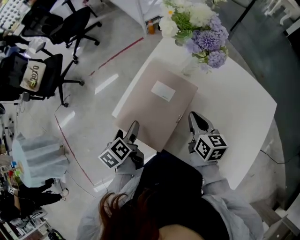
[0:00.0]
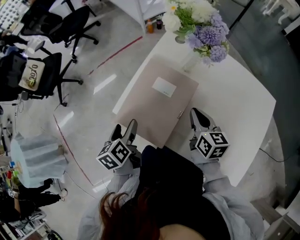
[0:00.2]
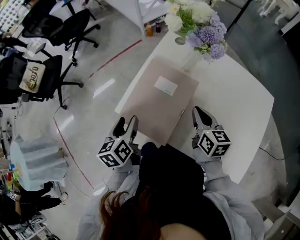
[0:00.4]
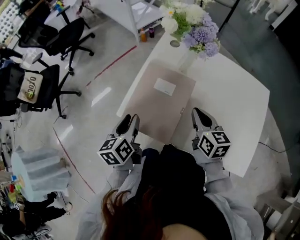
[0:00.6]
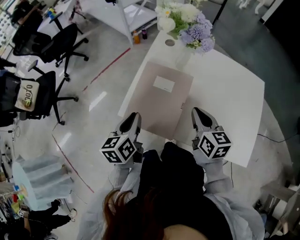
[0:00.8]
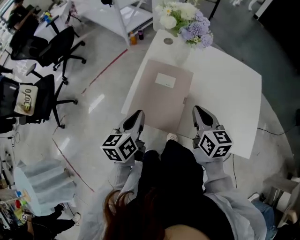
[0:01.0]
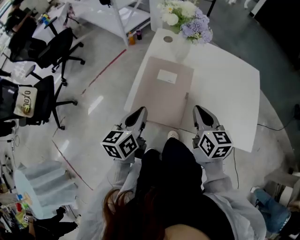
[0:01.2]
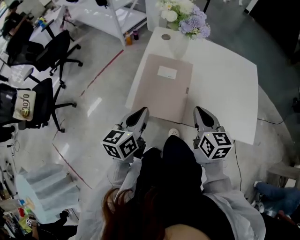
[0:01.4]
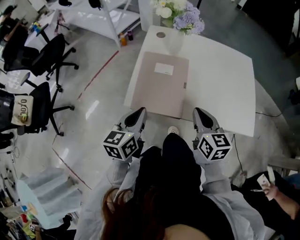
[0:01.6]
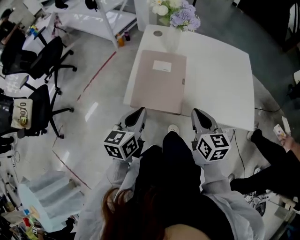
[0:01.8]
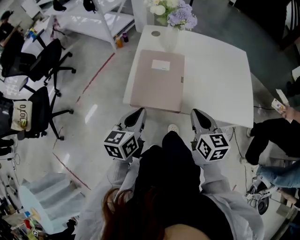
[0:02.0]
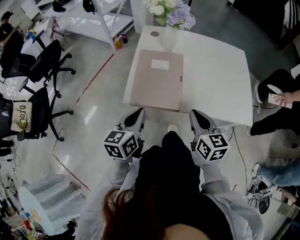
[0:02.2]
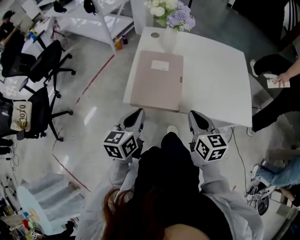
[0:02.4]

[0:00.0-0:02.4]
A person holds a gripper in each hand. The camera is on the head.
0:00.0 to 0:01.2: The right gripper ends up roughly 15 cm from where it was. Meanwhile the left gripper moves upward, some 15 cm, changes its angle by approximately 50 degrees, and closes its fingers.
0:01.2 to 0:02.4: The left gripper is displaced backward by some 5 cm; the right gripper moves backward, some 10 cm.

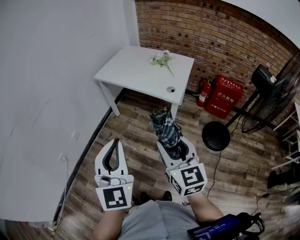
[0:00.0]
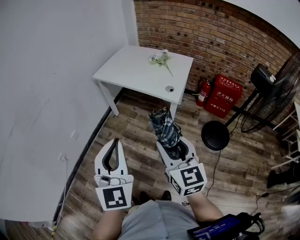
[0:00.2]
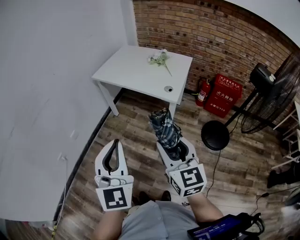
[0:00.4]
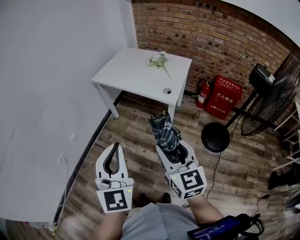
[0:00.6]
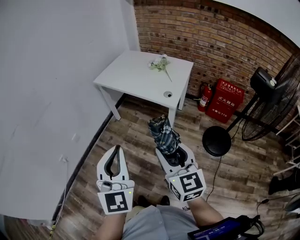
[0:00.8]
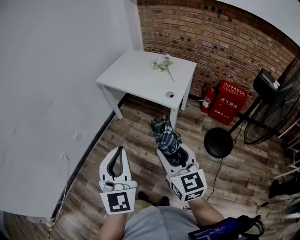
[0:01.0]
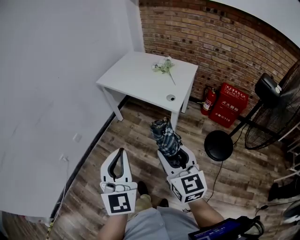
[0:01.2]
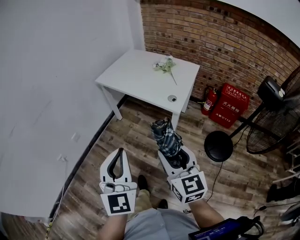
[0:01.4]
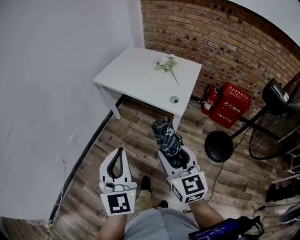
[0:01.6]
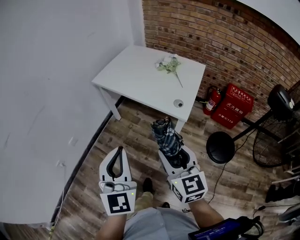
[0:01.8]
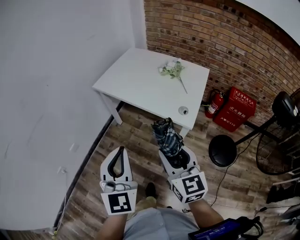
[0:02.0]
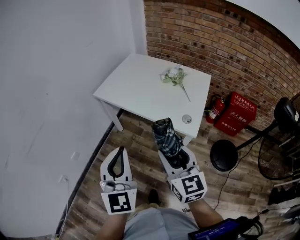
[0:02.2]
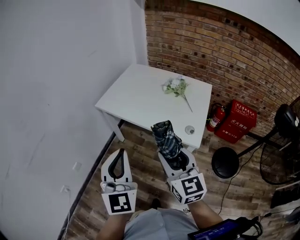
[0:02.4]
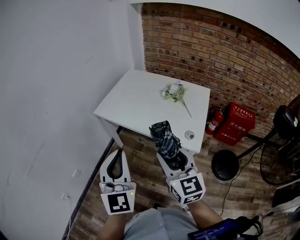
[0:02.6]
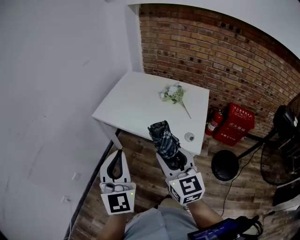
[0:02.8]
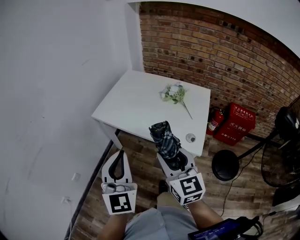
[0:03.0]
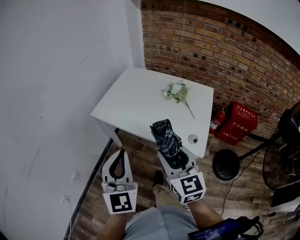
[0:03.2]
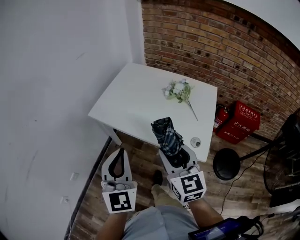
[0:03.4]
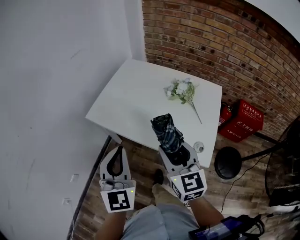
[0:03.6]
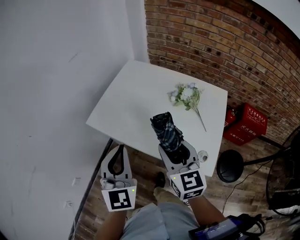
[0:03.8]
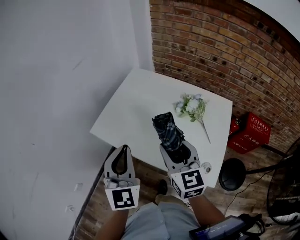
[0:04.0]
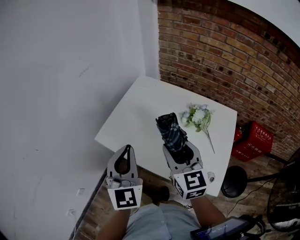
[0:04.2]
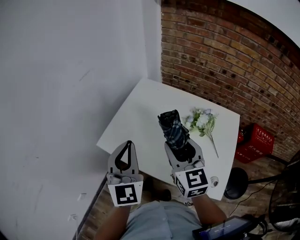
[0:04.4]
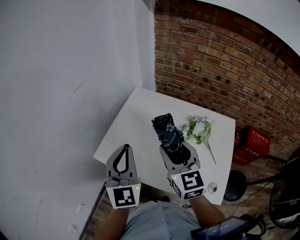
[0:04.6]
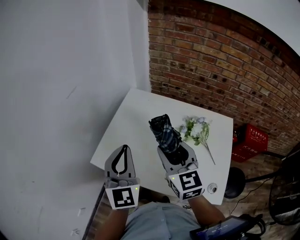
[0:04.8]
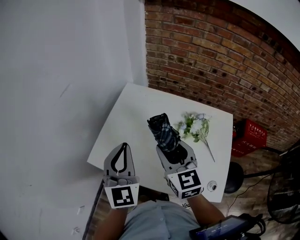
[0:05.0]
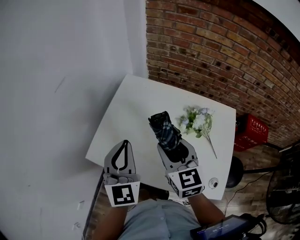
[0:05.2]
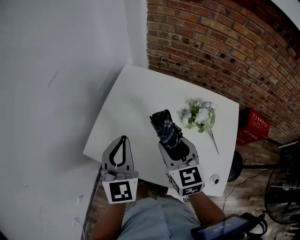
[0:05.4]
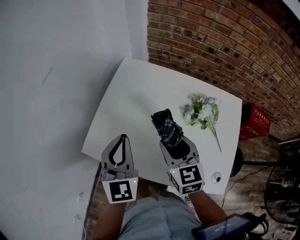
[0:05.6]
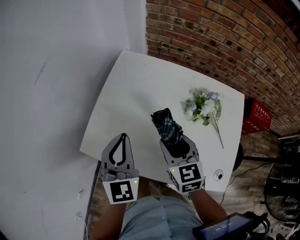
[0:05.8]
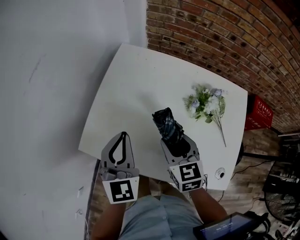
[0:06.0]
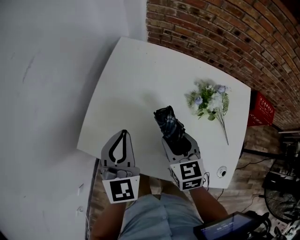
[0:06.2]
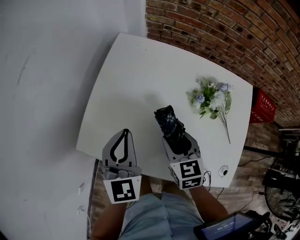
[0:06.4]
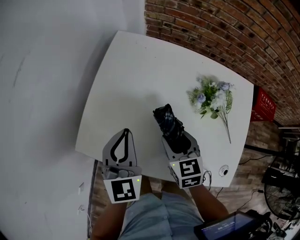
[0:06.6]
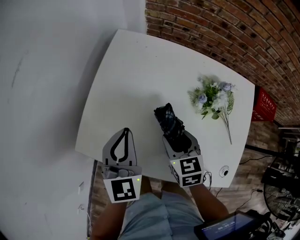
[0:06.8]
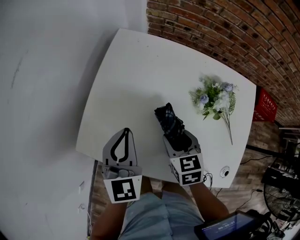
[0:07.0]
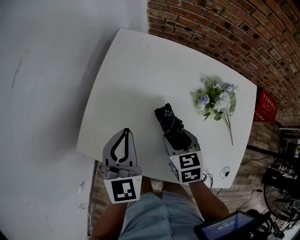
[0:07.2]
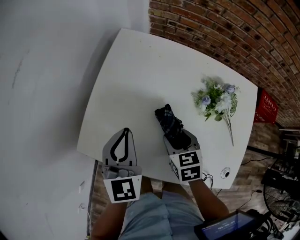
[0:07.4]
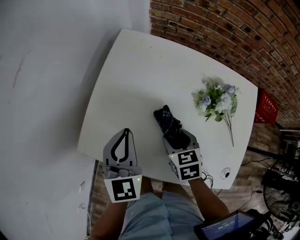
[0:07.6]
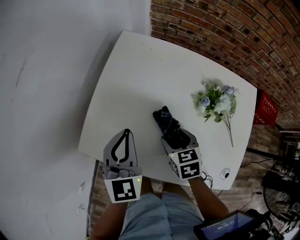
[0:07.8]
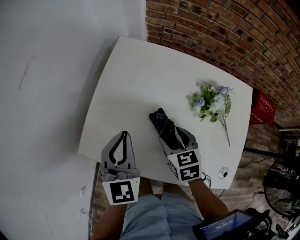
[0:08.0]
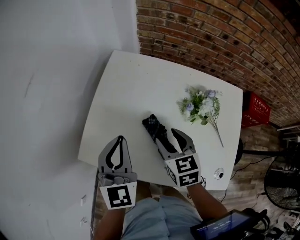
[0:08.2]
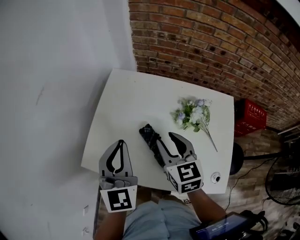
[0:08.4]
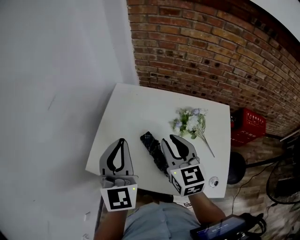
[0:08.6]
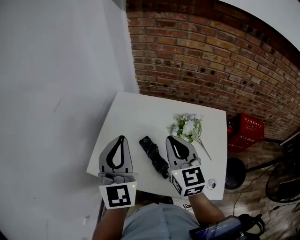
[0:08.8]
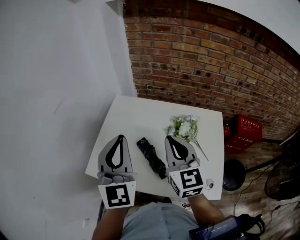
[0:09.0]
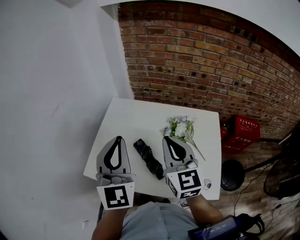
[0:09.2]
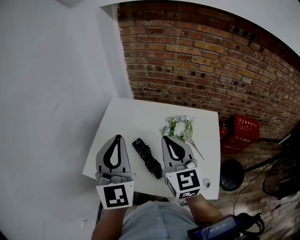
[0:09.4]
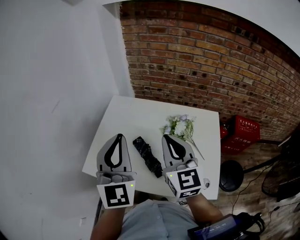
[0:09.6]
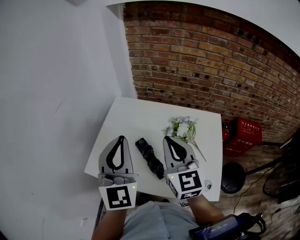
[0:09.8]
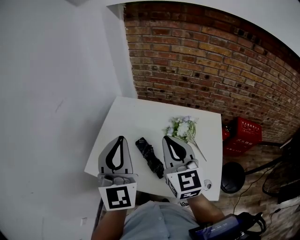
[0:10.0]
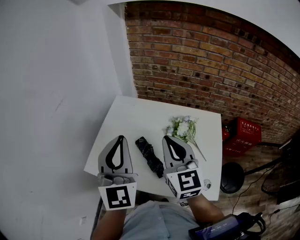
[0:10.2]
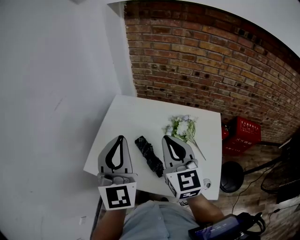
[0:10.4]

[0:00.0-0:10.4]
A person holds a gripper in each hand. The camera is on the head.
0:00.0 to 0:01.4: The right gripper moves about 5 cm. The left gripper is displaced to the right by roughly 5 cm.
0:01.4 to 0:03.0: Both grippers move forward, some 30 cm.
0:03.0 to 0:04.4: Both grippers travel together forward, some 35 cm.
0:04.4 to 0:06.0: The grippers both shift downward and forward by some 20 cm. The right gripper rotates roughly 20 degrees.
0:06.0 to 0:07.4: The left gripper shifts by about 5 cm. Meanwhile the right gripper moves downward, approximately 10 cm.
0:07.4 to 0:09.0: The two grippers go some 25 cm upward. The left gripper rotates roughly 30 degrees, while the right gripper points its fingers some 50 degrees further upward, and closes its fingers.
0:09.0 to 0:10.4: The grippers stay close to where they were, moving slightly.

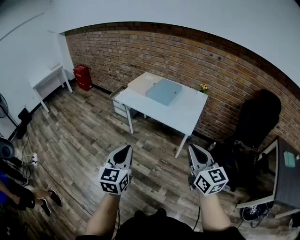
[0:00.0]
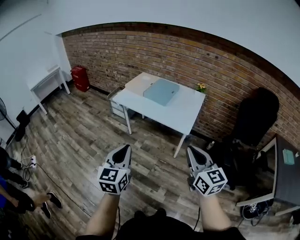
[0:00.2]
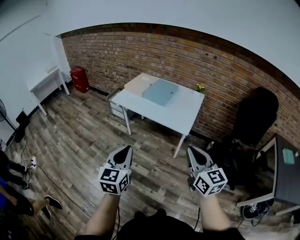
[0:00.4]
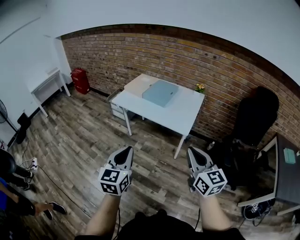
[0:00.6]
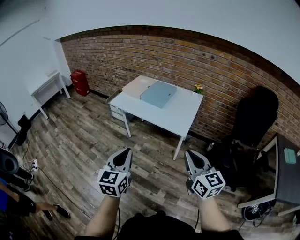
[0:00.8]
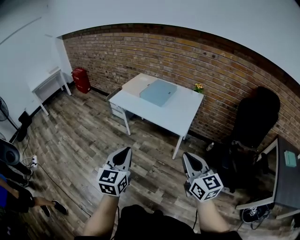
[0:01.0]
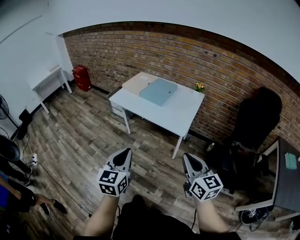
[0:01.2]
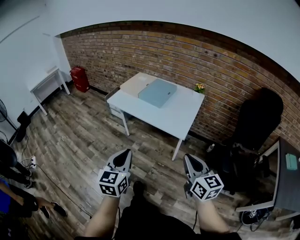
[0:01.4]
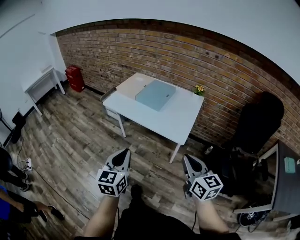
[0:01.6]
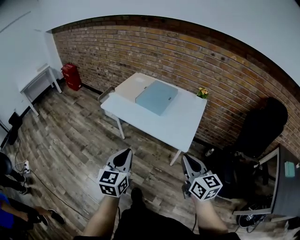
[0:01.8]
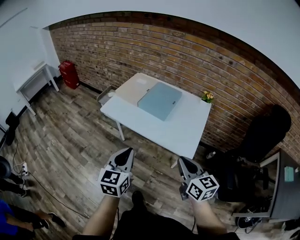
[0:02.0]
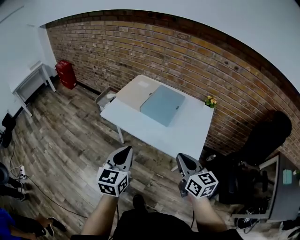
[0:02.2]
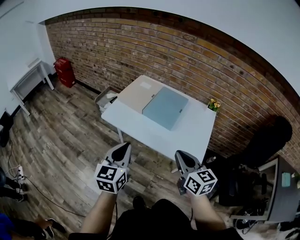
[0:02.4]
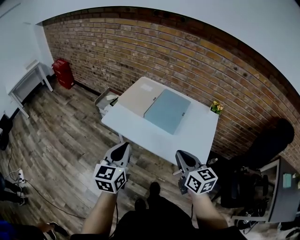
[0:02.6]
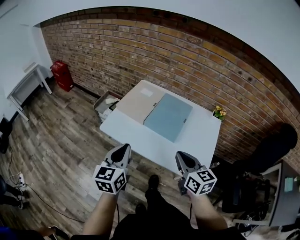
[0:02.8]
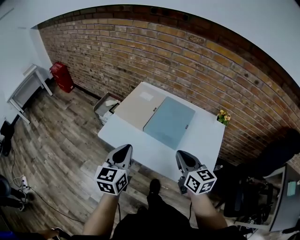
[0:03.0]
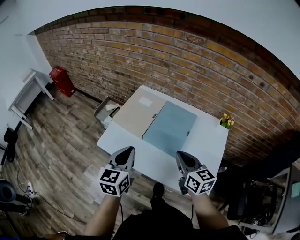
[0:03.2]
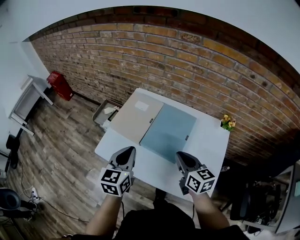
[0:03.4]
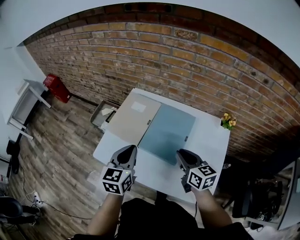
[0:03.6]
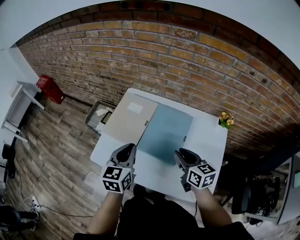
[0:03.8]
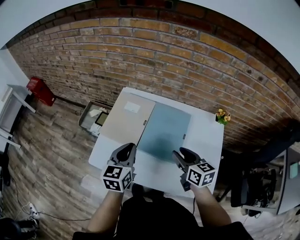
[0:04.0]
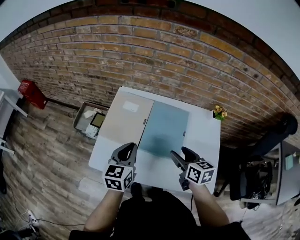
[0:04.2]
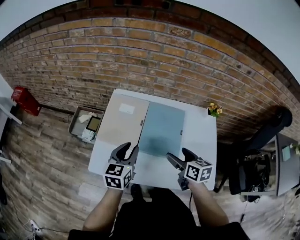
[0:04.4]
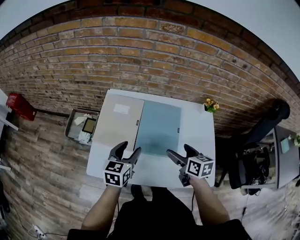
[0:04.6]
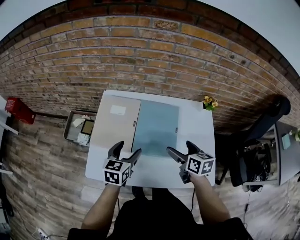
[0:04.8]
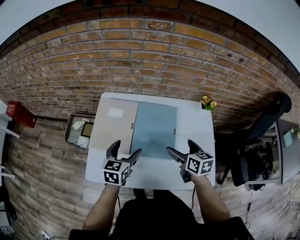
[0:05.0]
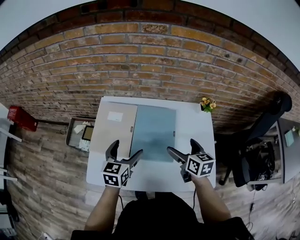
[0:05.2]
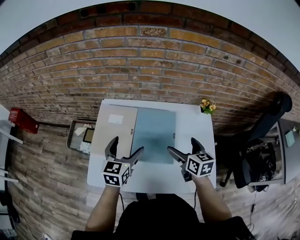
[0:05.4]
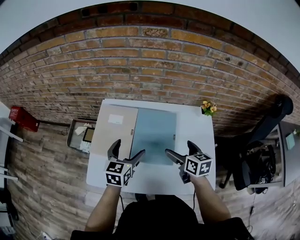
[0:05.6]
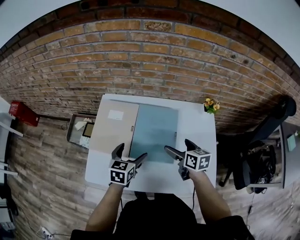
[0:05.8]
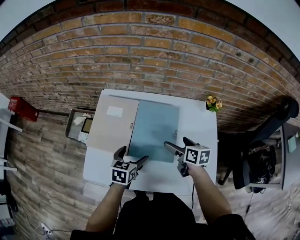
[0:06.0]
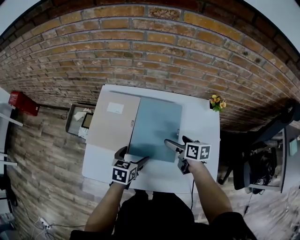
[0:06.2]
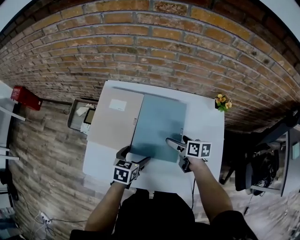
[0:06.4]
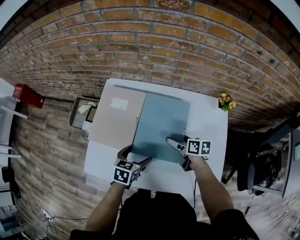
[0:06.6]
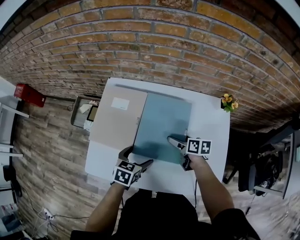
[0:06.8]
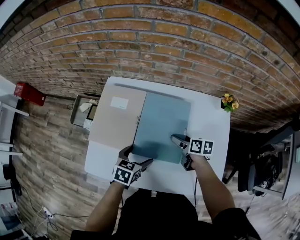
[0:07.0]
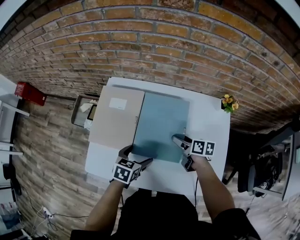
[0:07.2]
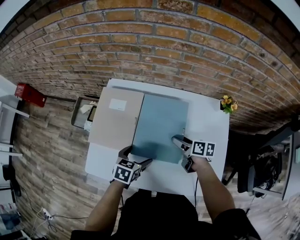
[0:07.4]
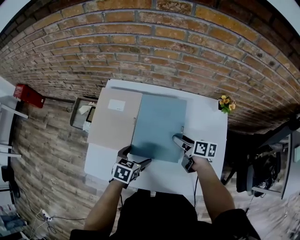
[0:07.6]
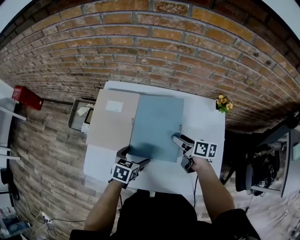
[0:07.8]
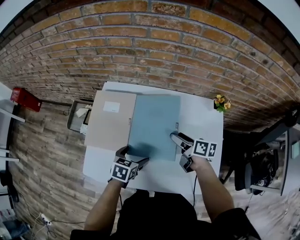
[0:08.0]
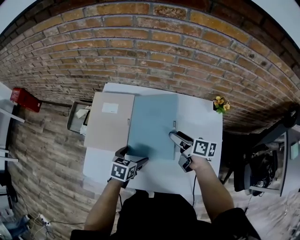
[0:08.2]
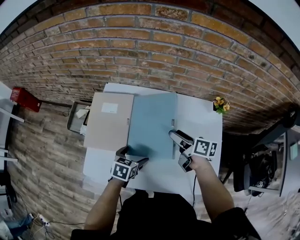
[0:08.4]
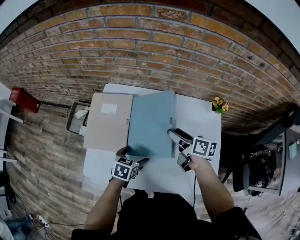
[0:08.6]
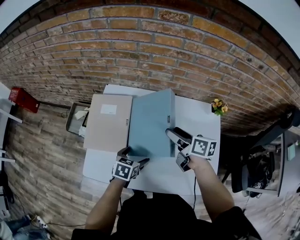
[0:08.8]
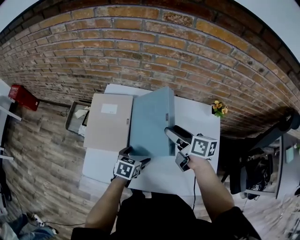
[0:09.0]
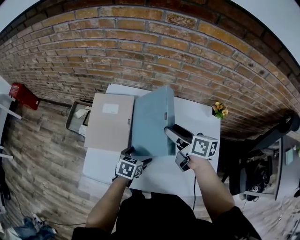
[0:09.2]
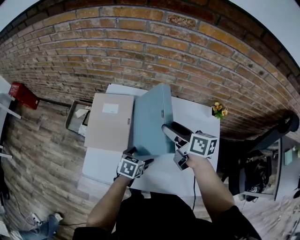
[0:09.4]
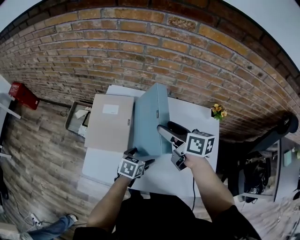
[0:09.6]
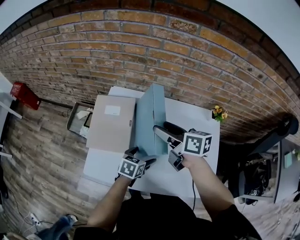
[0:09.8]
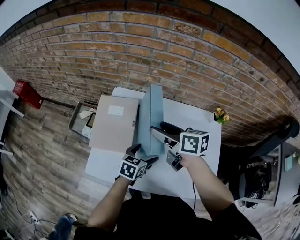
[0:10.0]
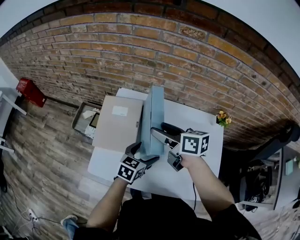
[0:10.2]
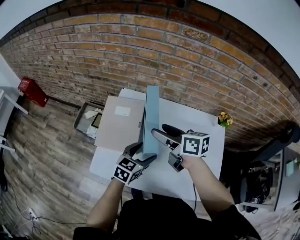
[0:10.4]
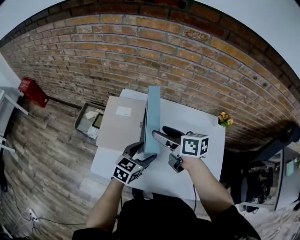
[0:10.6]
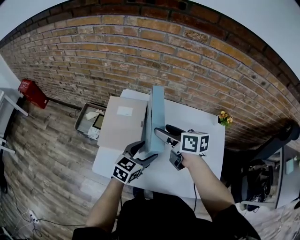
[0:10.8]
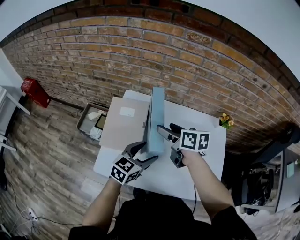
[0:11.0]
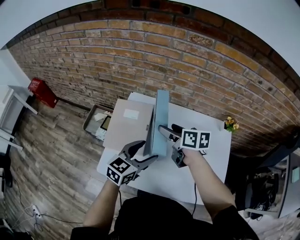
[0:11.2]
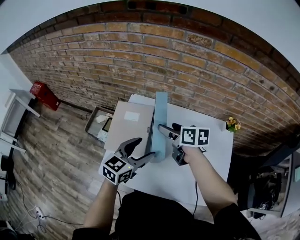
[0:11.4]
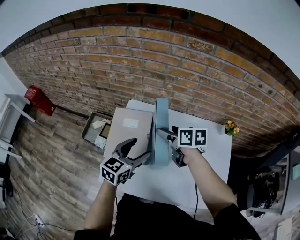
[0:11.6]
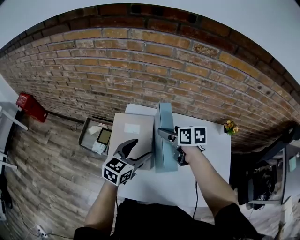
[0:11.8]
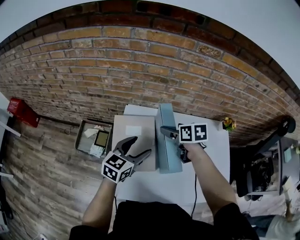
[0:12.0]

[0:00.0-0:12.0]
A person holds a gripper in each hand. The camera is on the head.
0:00.0 to 0:01.6: The right gripper travels forward, downward and to the right by approximately 10 cm; the left gripper is displaced forward and to the right by some 10 cm.
0:01.6 to 0:03.0: The two grippers travel together, forward, roughly 40 cm.
0:03.0 to 0:04.4: Both grippers move forward and downward, roughly 15 cm. The right gripper rotates approximately 30 degrees, and opens up. The left gripper rotates roughly 20 degrees.
0:04.4 to 0:06.0: The left gripper moves up and down over about 10 cm, changing direction 2 times, changes its angle by some 20 degrees, and opens its fingers, while the right gripper is displaced forward, downward and to the right by roughly 10 cm.
0:06.0 to 0:07.6: The right gripper is displaced downward by some 5 cm, and closes up.
0:07.6 to 0:09.0: The right gripper is displaced upward and to the left by roughly 15 cm.
0:09.0 to 0:10.4: The right gripper heads to the left and upward, covering roughly 15 cm. The left gripper goes roughly 10 cm upward, and rotates approximately 20 degrees.
0:10.4 to 0:12.0: The right gripper heads forward and downward, covering roughly 10 cm, and turns by roughly 30 degrees; the left gripper is displaced to the left, forward and upward by about 20 cm.
